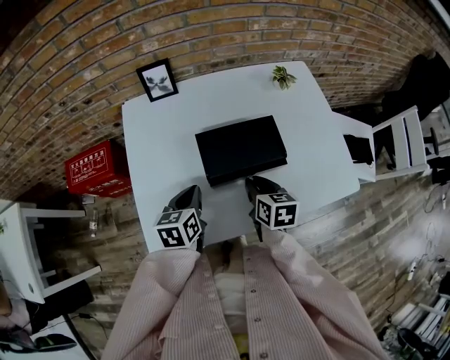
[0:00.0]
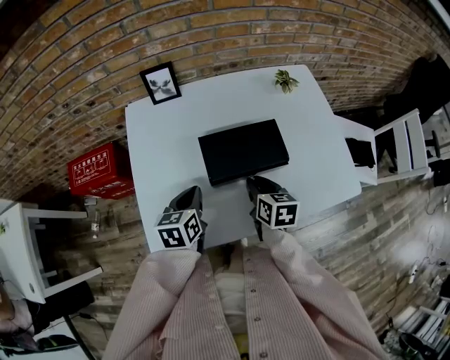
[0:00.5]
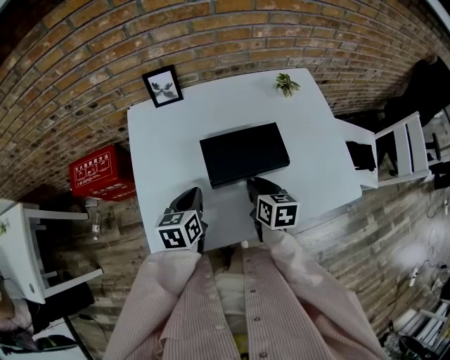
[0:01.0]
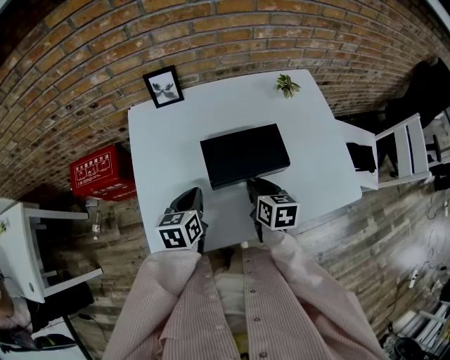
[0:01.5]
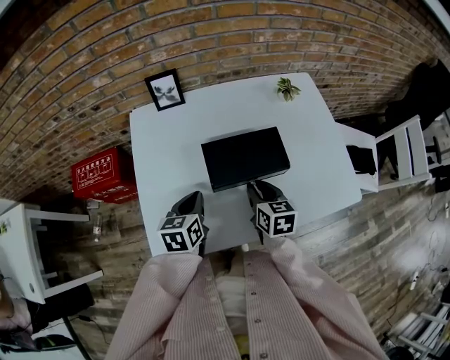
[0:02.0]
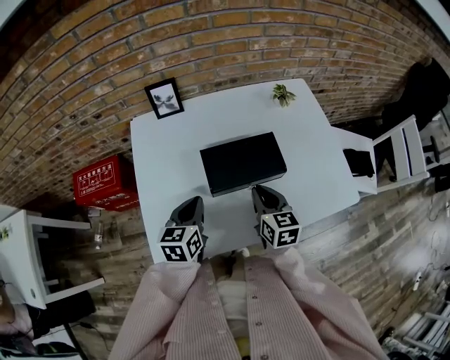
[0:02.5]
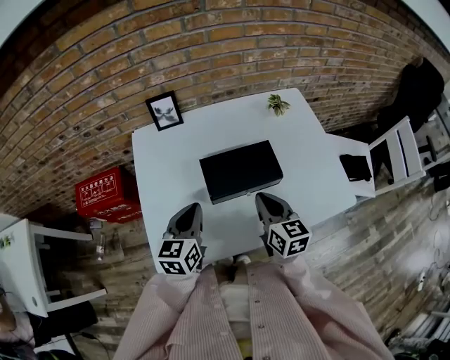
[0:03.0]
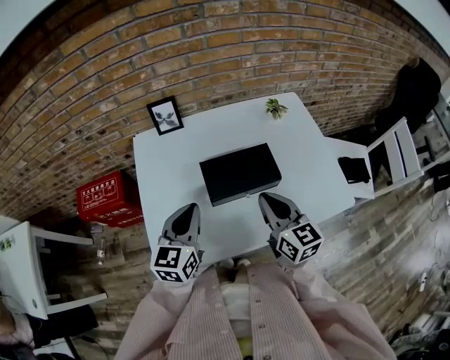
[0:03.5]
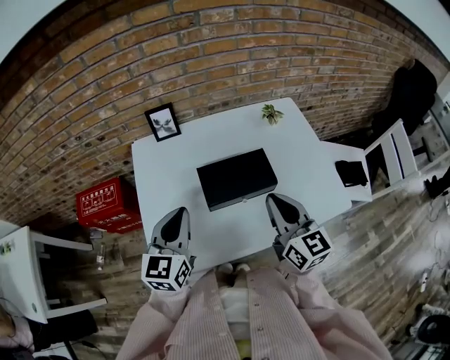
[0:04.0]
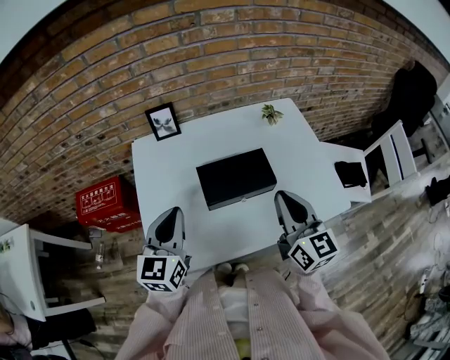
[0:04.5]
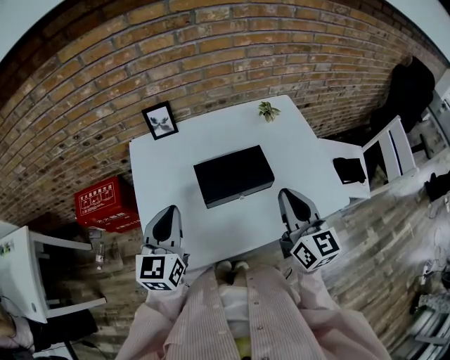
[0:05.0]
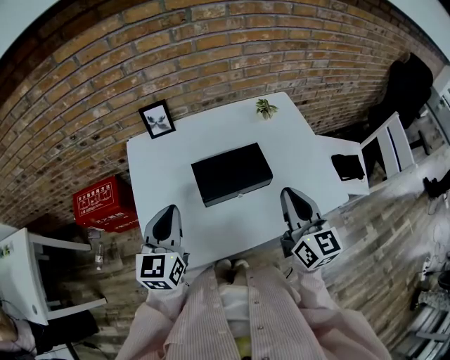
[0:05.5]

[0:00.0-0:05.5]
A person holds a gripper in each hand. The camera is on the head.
0.0 to 2.0 s: There are only small adjustments of the grippers.
2.0 to 3.5 s: Both grippers move upward, some 15 cm. The right gripper changes its angle by some 30 degrees. The left gripper swivels approximately 30 degrees.
3.5 to 5.5 s: The right gripper moves to the right and upward, about 10 cm.

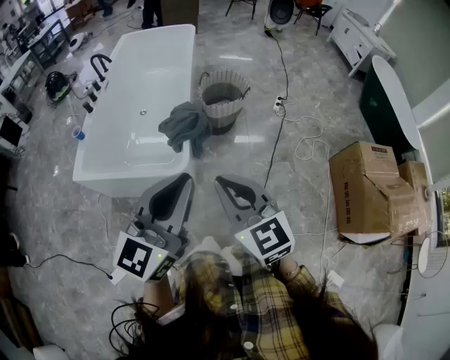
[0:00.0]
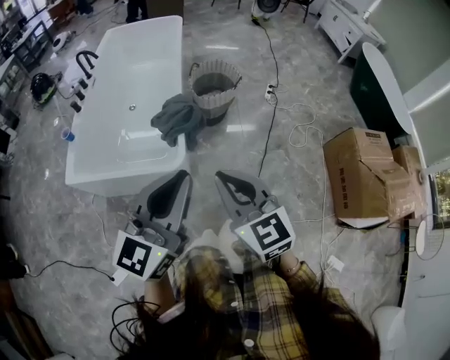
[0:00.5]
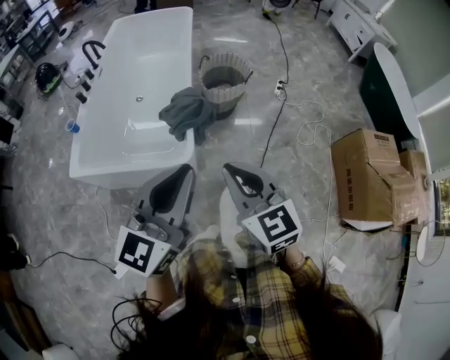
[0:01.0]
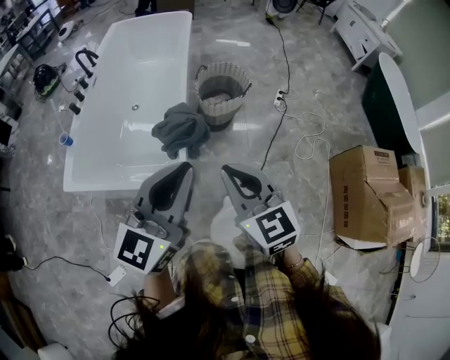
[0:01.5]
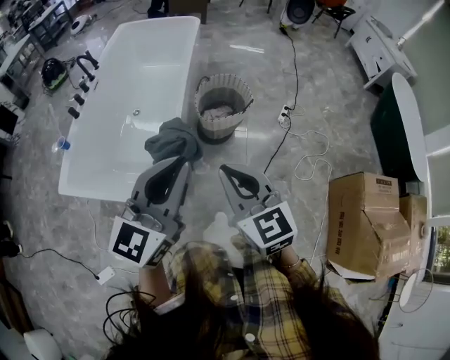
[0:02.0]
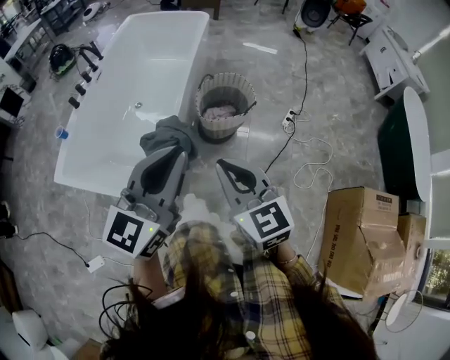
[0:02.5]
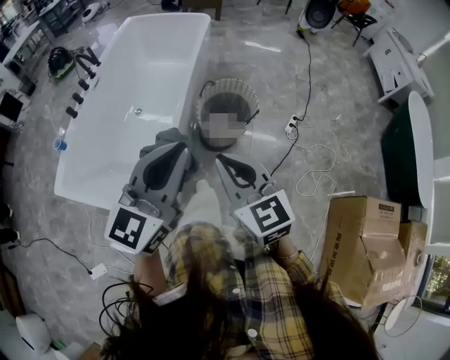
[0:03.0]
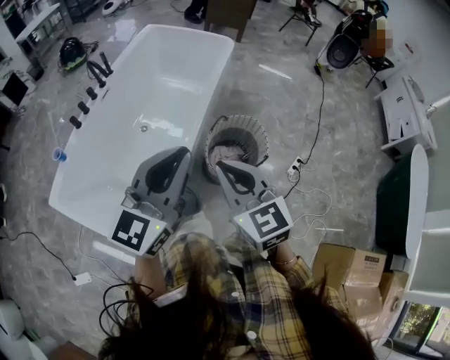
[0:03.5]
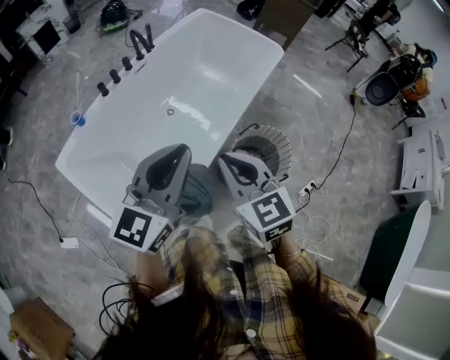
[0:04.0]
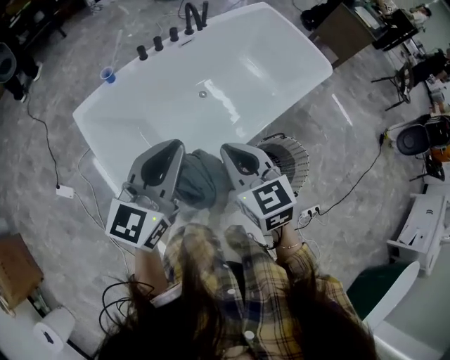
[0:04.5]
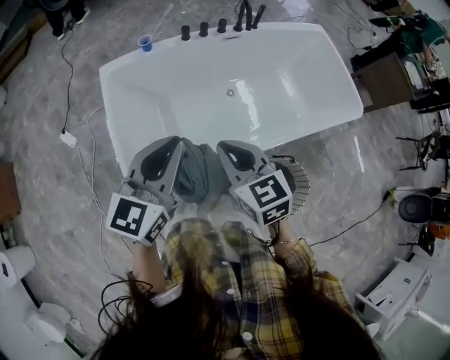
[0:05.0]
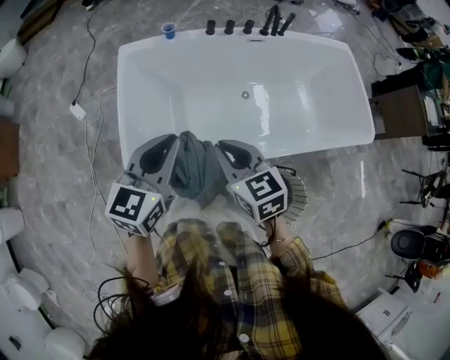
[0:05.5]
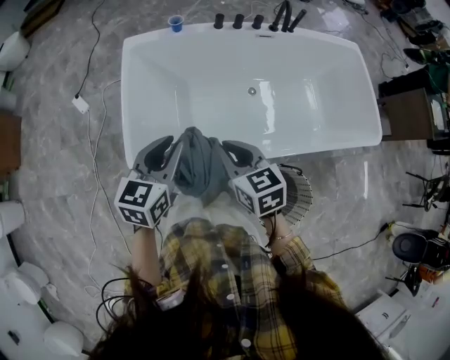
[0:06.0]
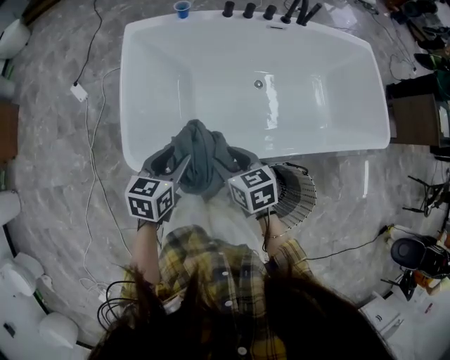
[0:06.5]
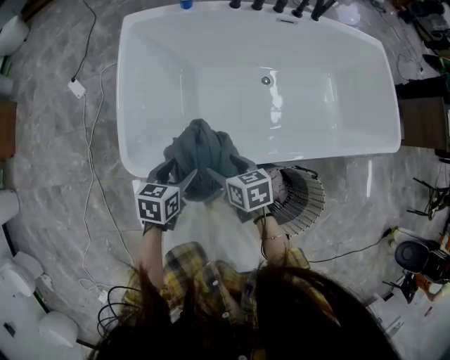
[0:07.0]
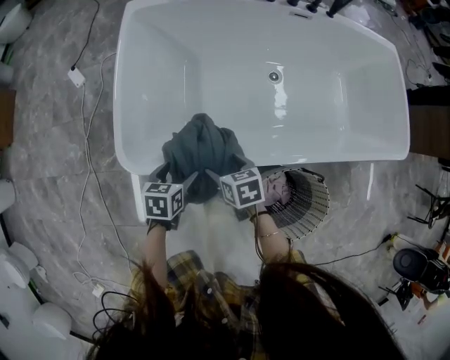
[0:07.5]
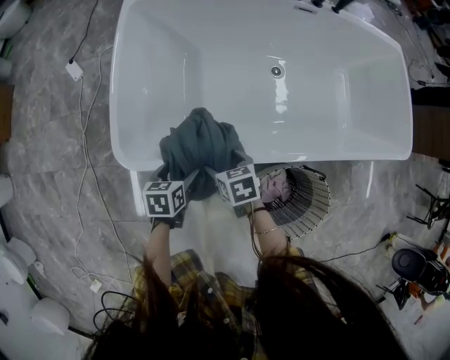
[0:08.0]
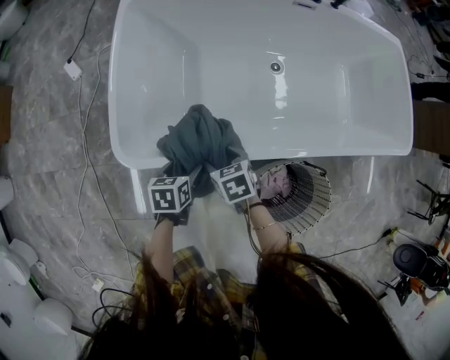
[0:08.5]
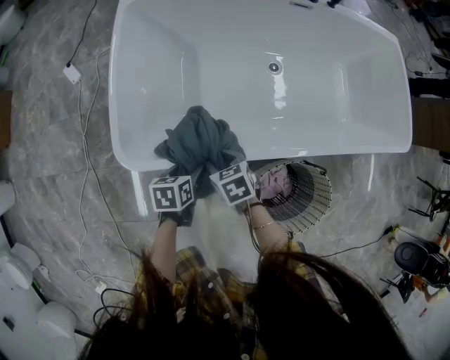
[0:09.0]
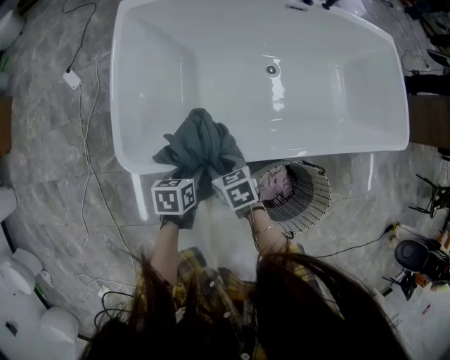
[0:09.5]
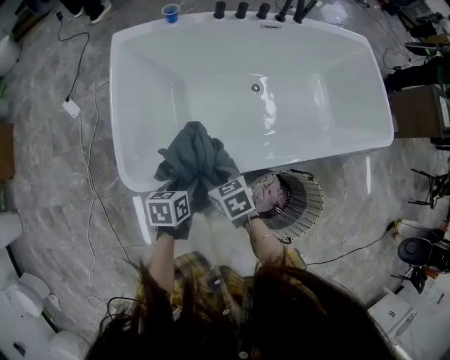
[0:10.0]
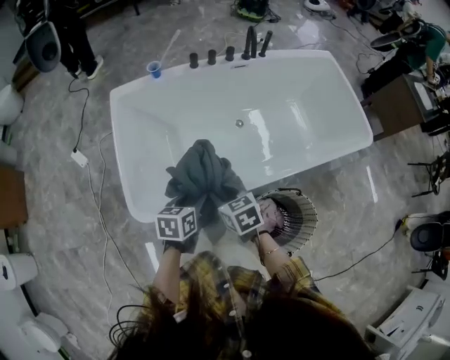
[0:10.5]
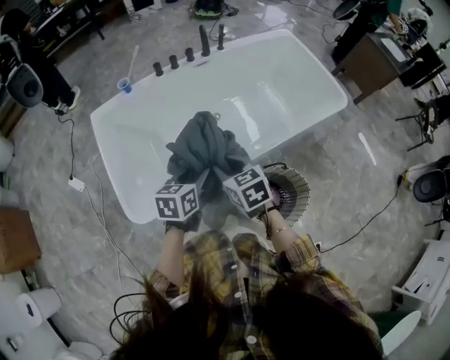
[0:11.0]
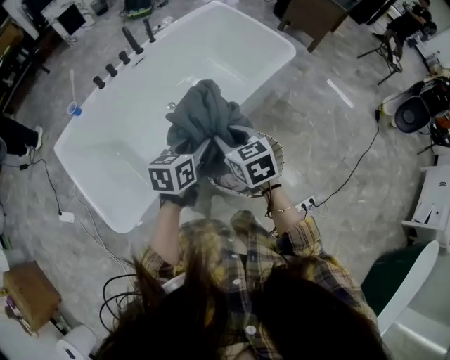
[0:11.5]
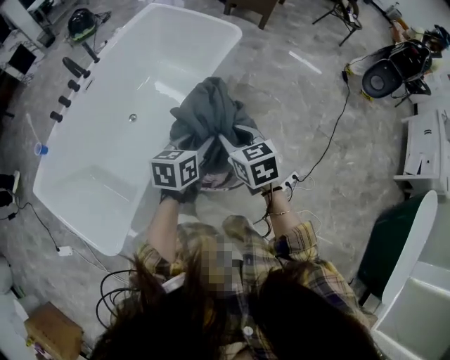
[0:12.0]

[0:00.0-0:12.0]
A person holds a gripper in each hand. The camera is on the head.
0.0 to 2.0 s: Both grippers move forward, about 25 cm.
2.0 to 4.0 s: The right gripper shifts by about 35 cm, and turns by some 30 degrees, while the left gripper ends up some 35 cm from where it was, and changes its angle by some 30 degrees.
4.0 to 6.0 s: Both grippers travel together downward, roughly 15 cm. The left gripper turns by approximately 60 degrees. Meanwhile the right gripper turns by some 50 degrees.
6.0 to 8.0 s: The grippers both shift downward by some 35 cm. The right gripper turns by roughly 30 degrees, and opens up. The left gripper swivels approximately 40 degrees, and opens up.
8.0 to 10.0 s: The grippers both shift upward by some 10 cm. The left gripper closes, while the right gripper closes up.
10.0 to 12.0 s: Both grippers are carried about 50 cm. The left gripper rotates roughly 60 degrees, while the right gripper swivels about 60 degrees.

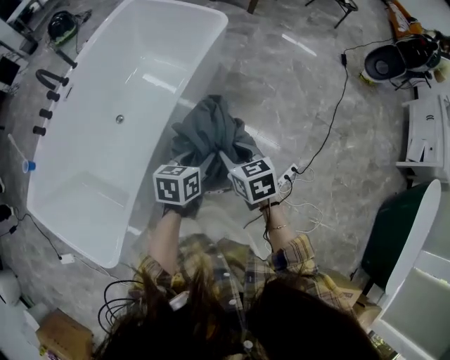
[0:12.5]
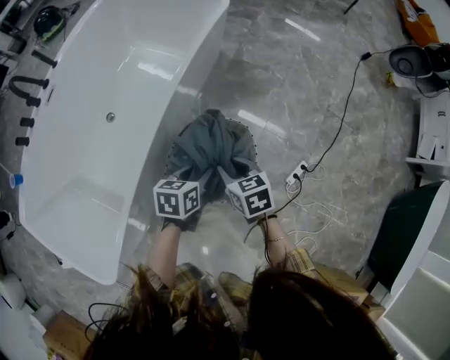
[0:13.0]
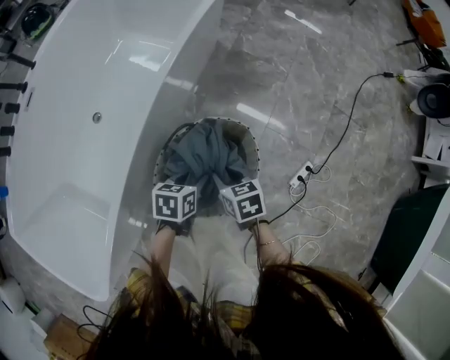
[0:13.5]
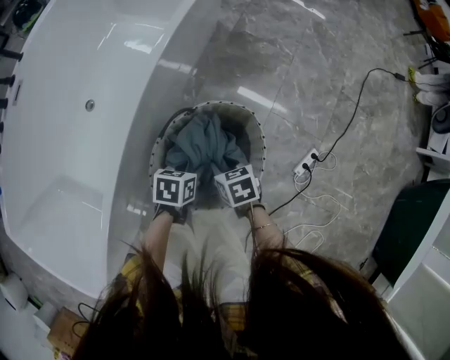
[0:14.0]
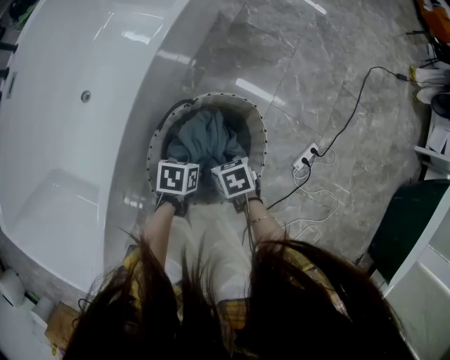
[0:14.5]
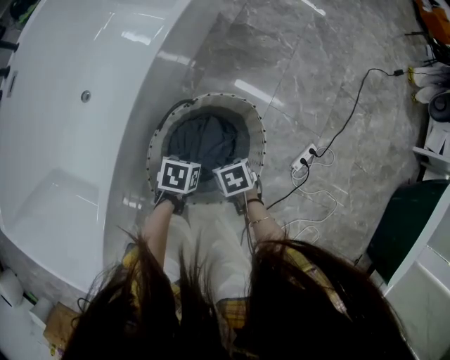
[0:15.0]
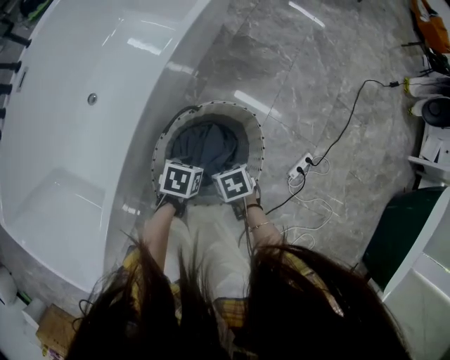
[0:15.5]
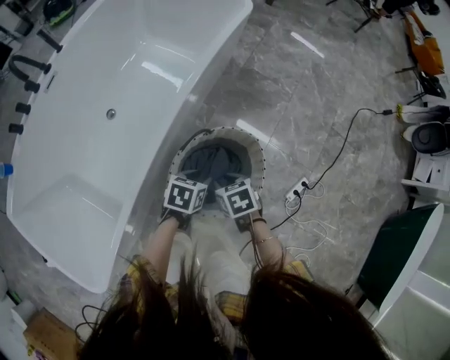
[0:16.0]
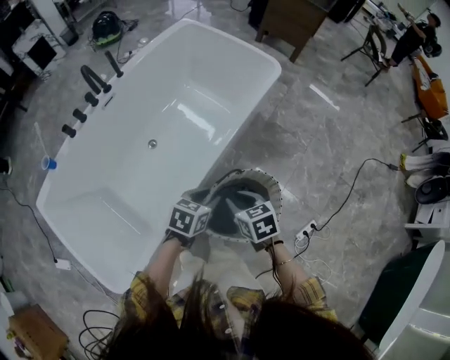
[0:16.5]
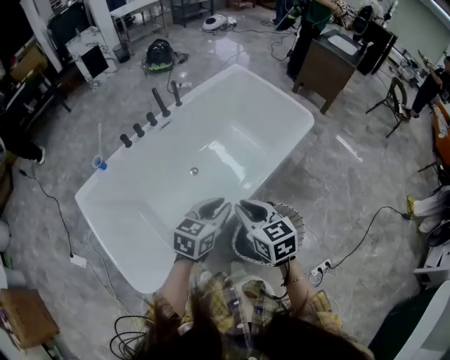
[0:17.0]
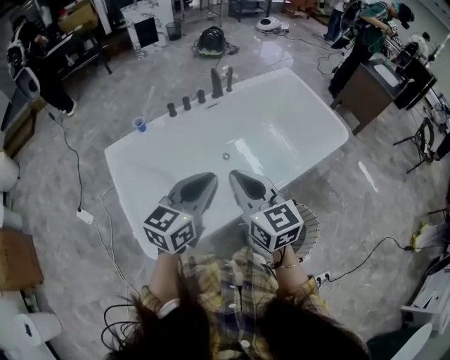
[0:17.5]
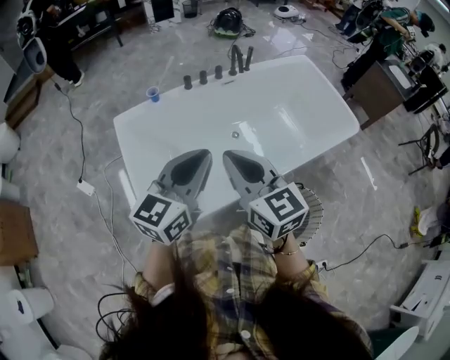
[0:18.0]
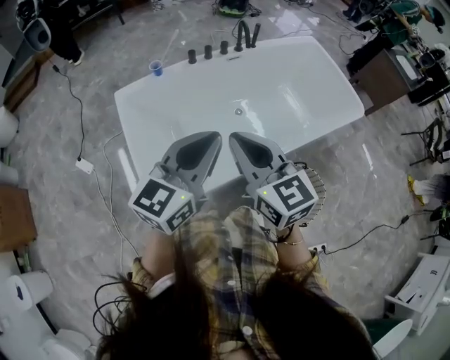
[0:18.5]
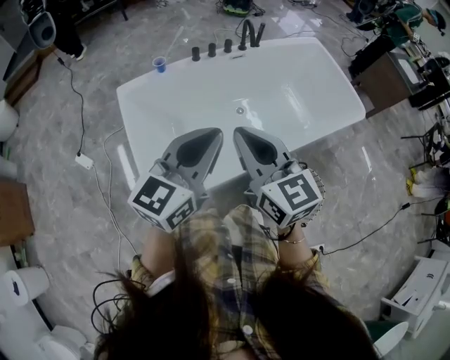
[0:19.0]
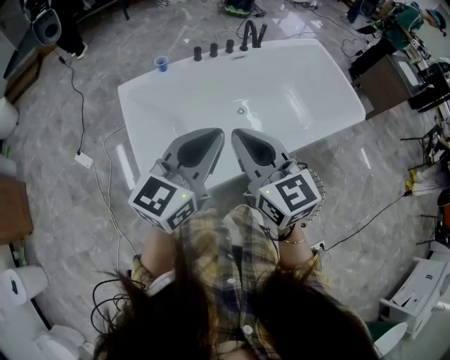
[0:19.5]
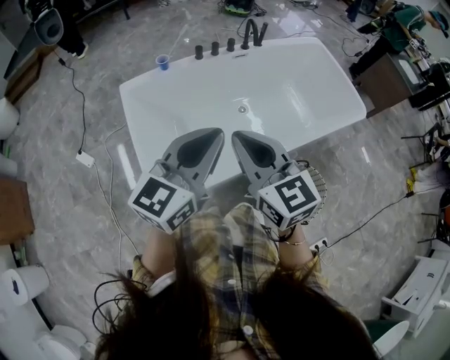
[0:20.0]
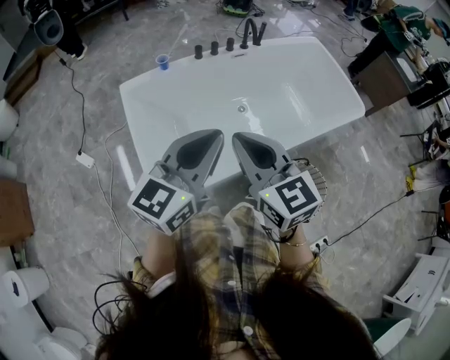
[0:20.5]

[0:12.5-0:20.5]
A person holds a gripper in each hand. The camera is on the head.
12.5 to 14.5 s: Both grippers travel together downward, about 40 cm. The left gripper turns by about 30 degrees. Meanwhile the right gripper swivels about 30 degrees.
14.5 to 16.5 s: Both grippers travel together upward, some 30 cm. The right gripper swivels about 30 degrees; the left gripper changes its angle by roughly 30 degrees.
16.5 to 18.5 s: The right gripper moves approximately 50 cm, and points its fingers some 40 degrees further upward. The left gripper is displaced upward by roughly 40 cm, and points its fingers some 40 degrees further upward.
18.5 to 20.5 s: There are only small adjustments of the grippers.

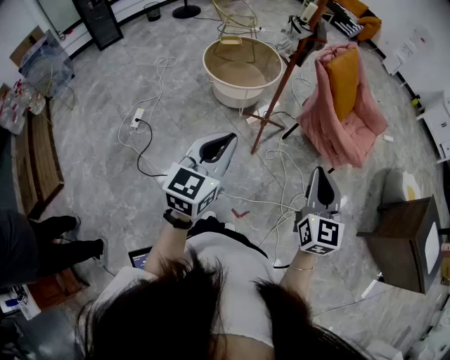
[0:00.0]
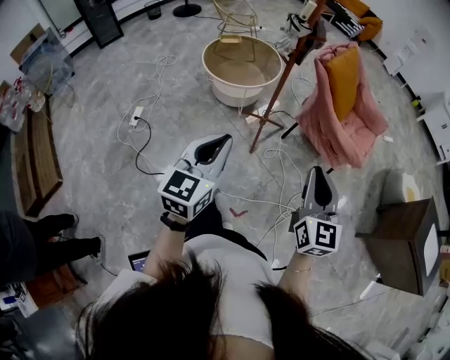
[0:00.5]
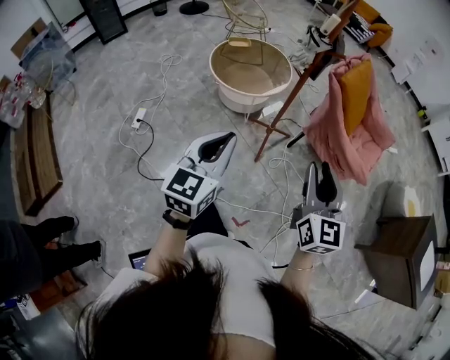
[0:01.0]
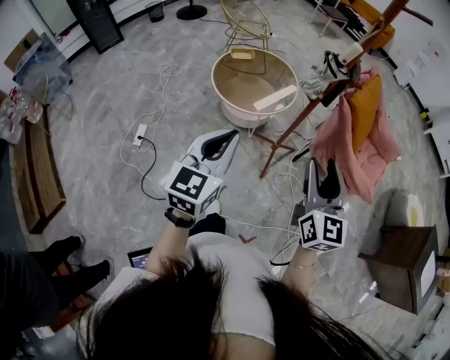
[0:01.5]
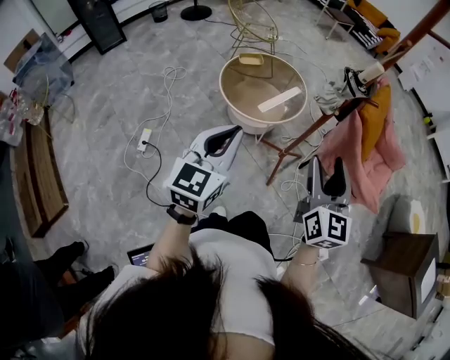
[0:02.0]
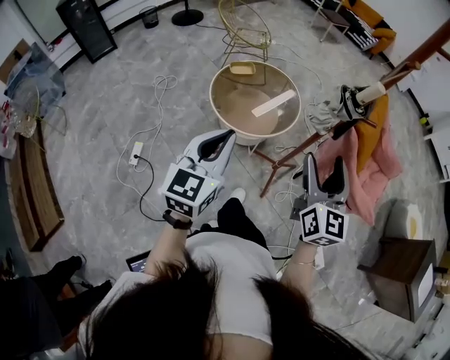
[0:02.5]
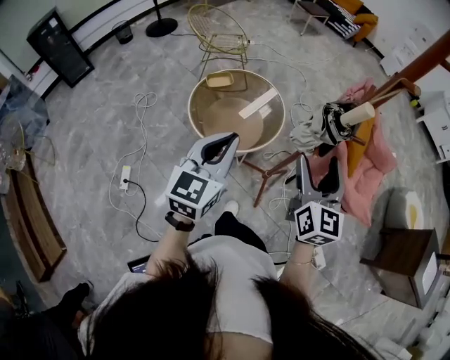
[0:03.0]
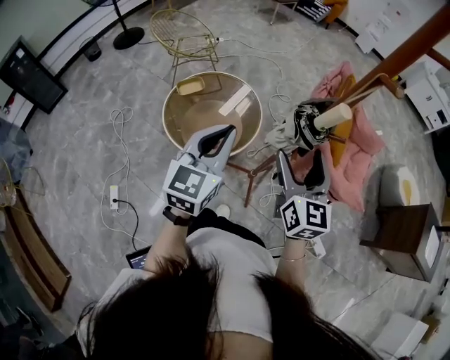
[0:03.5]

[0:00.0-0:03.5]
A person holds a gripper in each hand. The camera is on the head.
0.0 to 2.0 s: Both grippers travel together forward and to the left, about 30 cm. The right gripper opens up.
2.0 to 3.5 s: The grippers both shift forward by about 25 cm.
